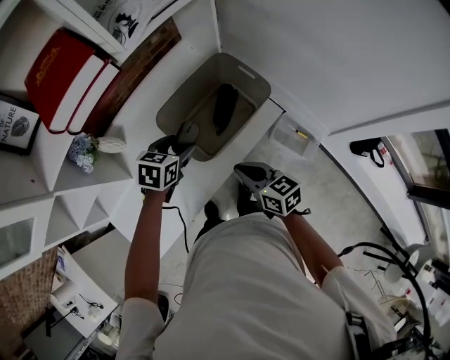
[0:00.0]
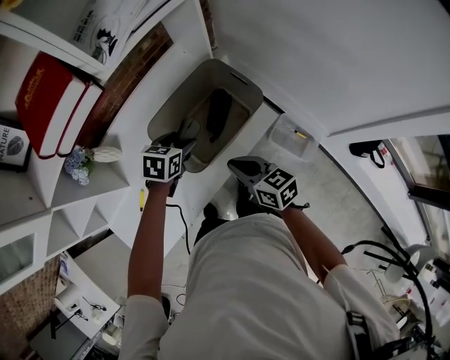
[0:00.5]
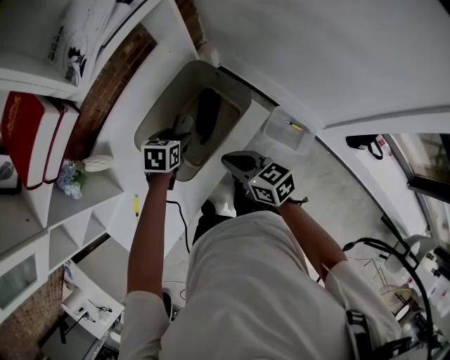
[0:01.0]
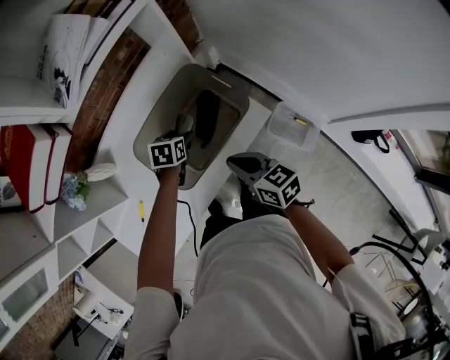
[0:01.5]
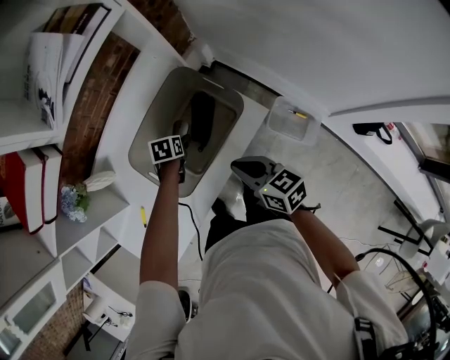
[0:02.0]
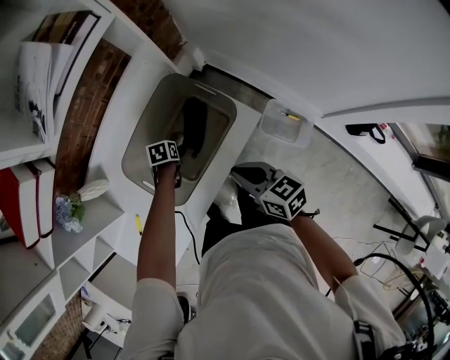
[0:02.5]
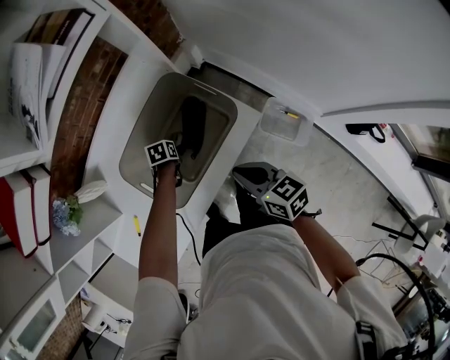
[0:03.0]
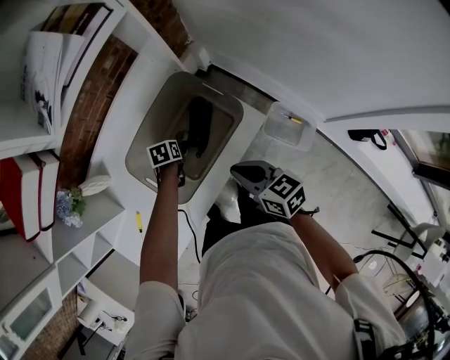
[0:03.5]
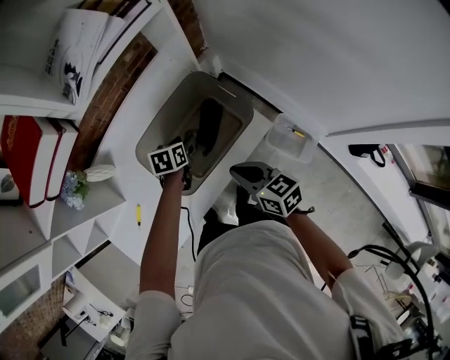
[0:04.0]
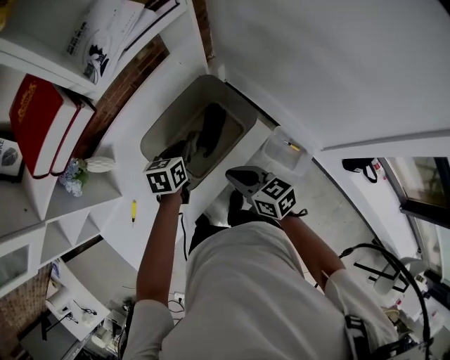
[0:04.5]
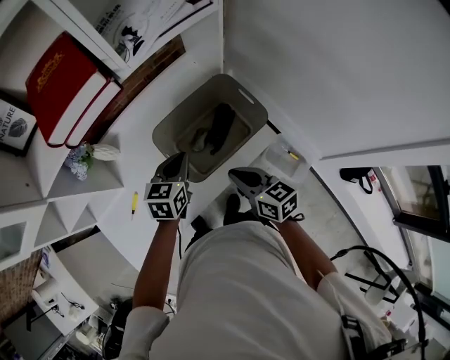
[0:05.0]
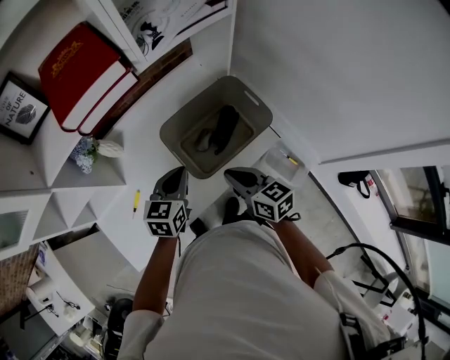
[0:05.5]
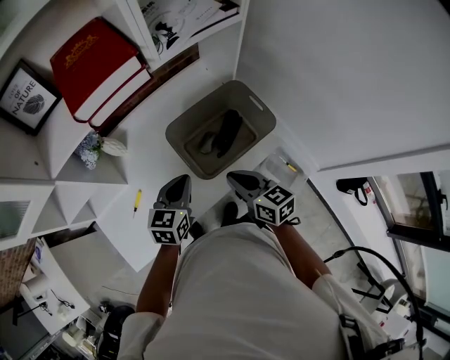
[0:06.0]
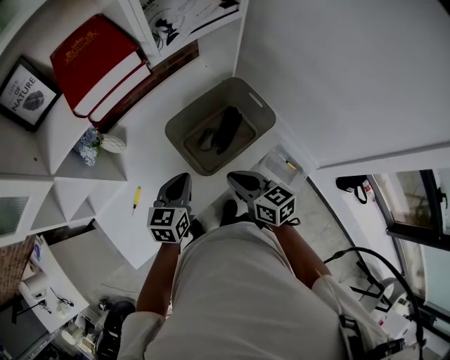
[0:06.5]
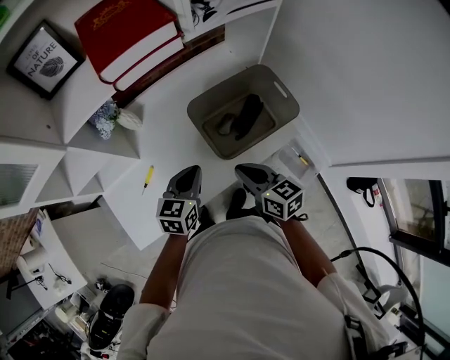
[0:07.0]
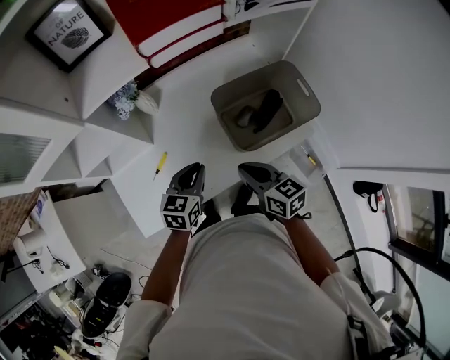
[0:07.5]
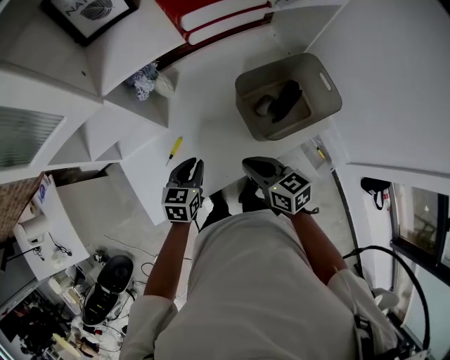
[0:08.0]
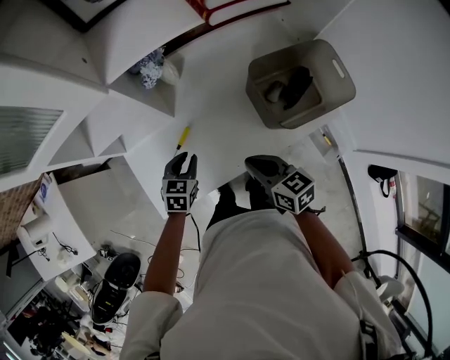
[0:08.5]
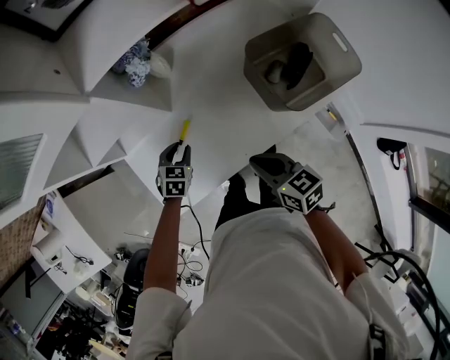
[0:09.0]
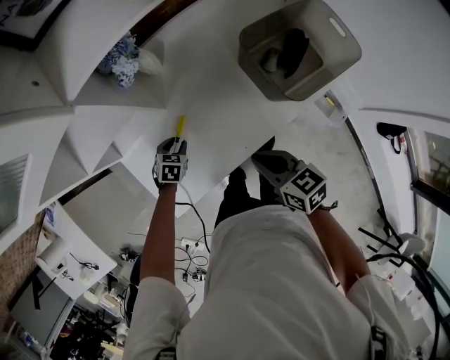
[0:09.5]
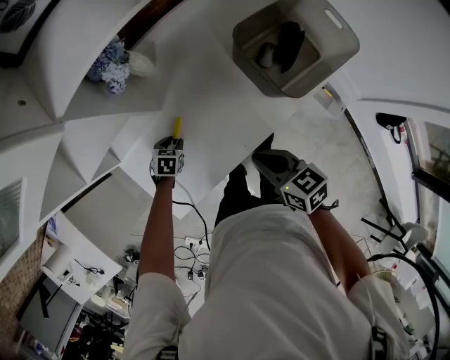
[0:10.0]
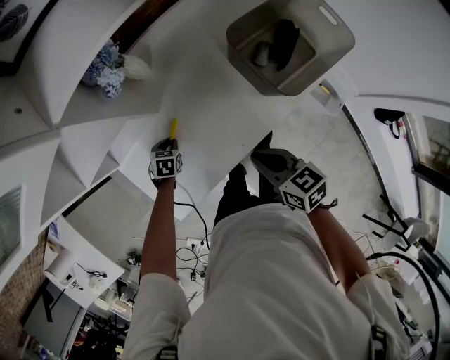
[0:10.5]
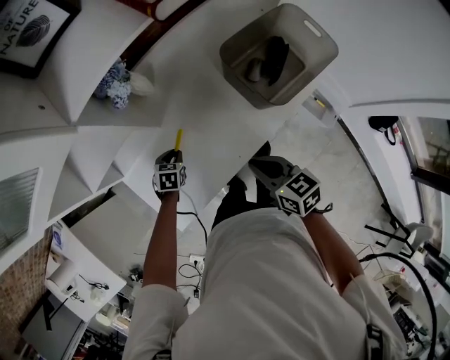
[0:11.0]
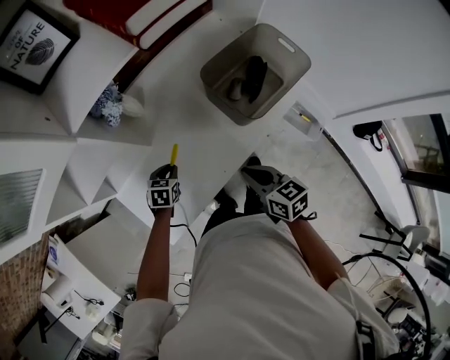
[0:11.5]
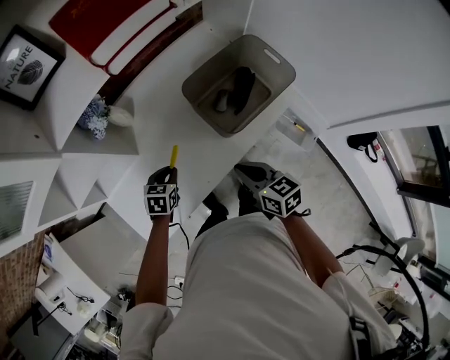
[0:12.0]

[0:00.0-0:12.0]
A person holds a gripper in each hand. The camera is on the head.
0:00.0 to 0:02.0: The left gripper heads downward and forward, covering approximately 25 cm, and changes its angle by some 30 degrees. The right gripper travels to the right and forward by roughly 10 cm.
0:02.0 to 0:04.0: The left gripper travels upward by some 5 cm.
0:04.0 to 0:06.0: The right gripper is displaced to the left and upward by approximately 10 cm. Meanwhile the left gripper shifts approximately 25 cm upward, backward and to the left, rotates roughly 30 degrees, and closes.
0:06.0 to 0:08.0: The right gripper moves to the left, some 15 cm; the left gripper goes approximately 20 cm to the left and downward.
0:08.0 to 0:10.0: The right gripper goes approximately 10 cm downward and to the left, while the left gripper travels downward and to the left by some 30 cm, and turns by approximately 30 degrees.
0:10.0 to 0:12.0: The right gripper is displaced to the right by approximately 10 cm, while the left gripper heads upward and to the right, covering about 20 cm.

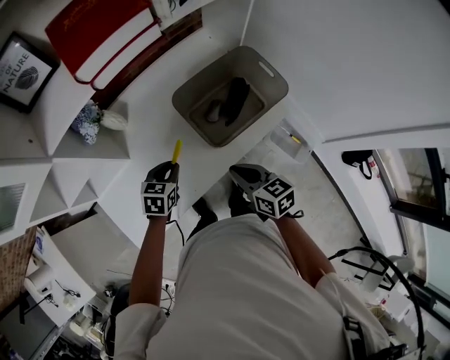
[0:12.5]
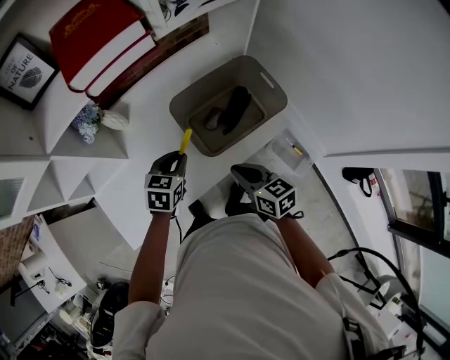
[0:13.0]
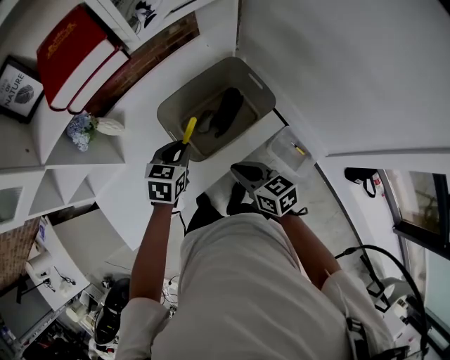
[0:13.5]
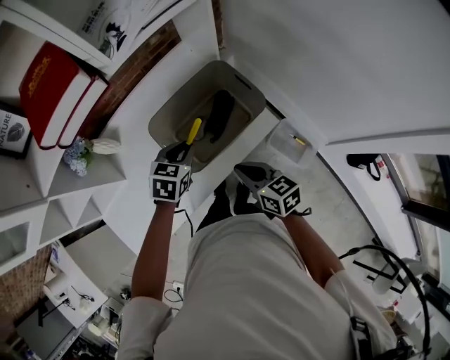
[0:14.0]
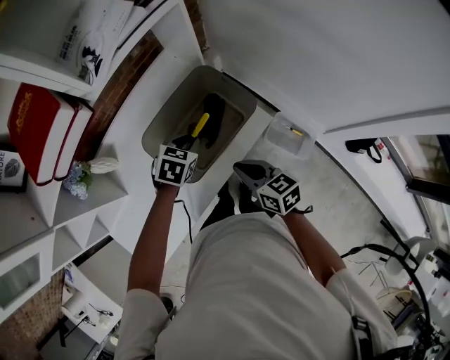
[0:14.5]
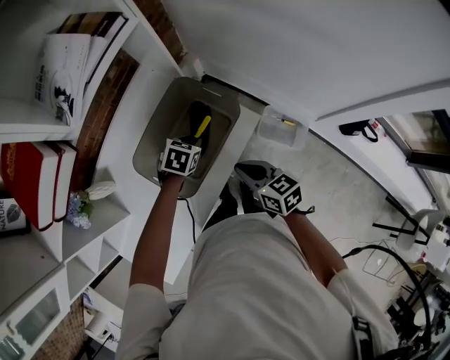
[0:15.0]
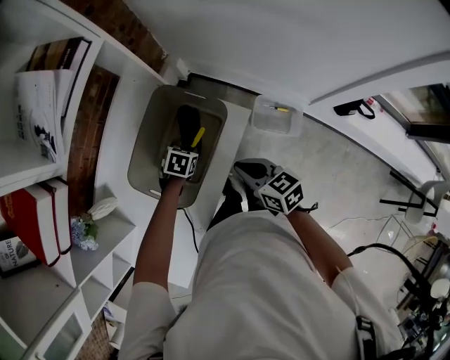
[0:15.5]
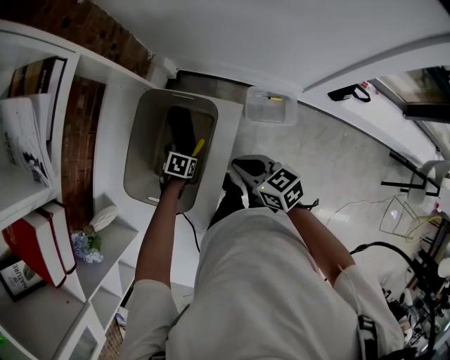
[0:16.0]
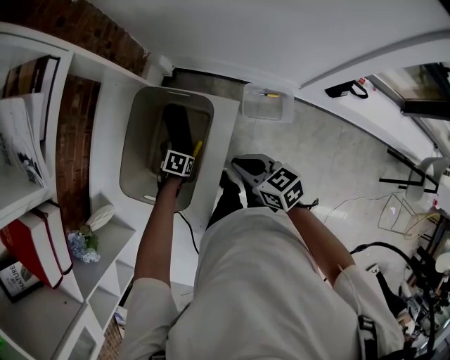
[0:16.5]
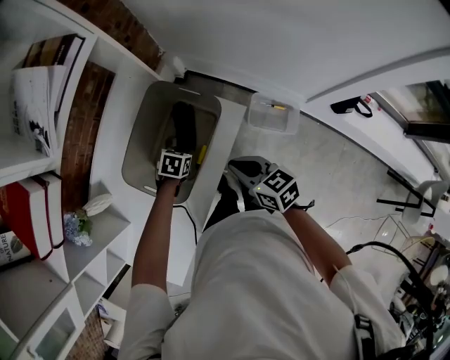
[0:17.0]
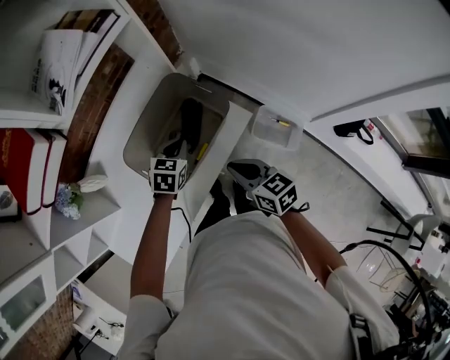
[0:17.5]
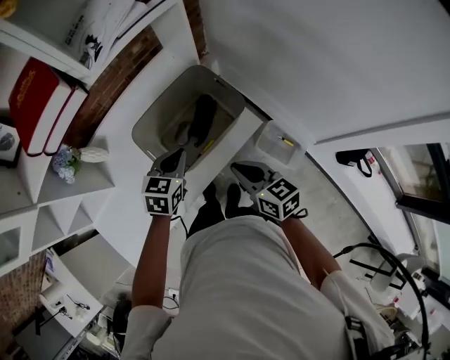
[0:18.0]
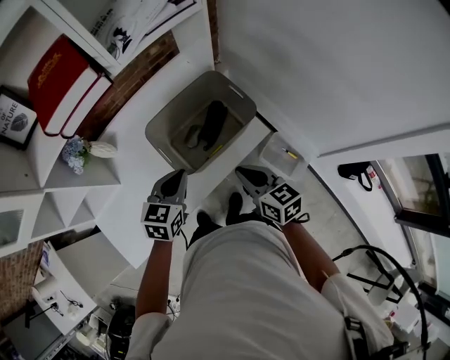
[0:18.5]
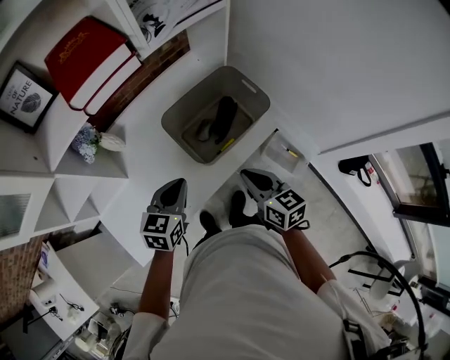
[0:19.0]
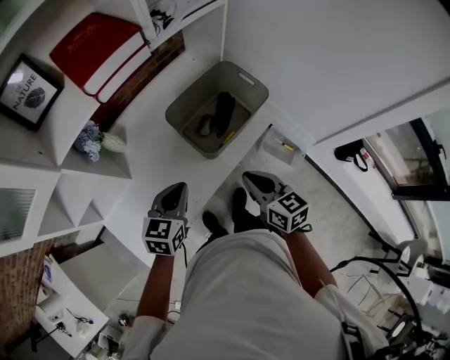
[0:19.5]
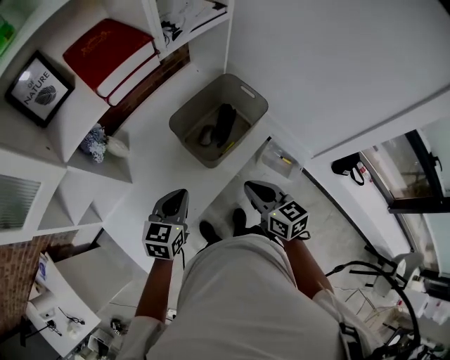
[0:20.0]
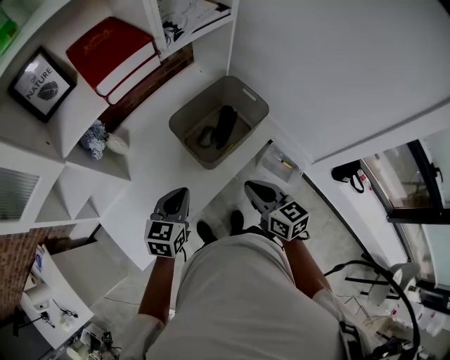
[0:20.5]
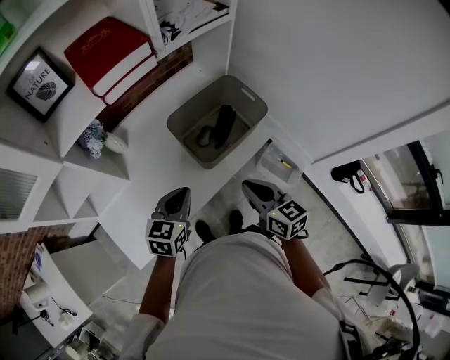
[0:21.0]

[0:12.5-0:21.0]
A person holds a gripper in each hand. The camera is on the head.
0:12.5 to 0:14.5: The left gripper heads to the right and forward, covering some 25 cm, and swivels roughly 20 degrees. Meanwhile the right gripper is displaced to the right and forward by roughly 15 cm.
0:14.5 to 0:16.5: The right gripper moves roughly 10 cm. The left gripper goes roughly 20 cm downward, and turns by some 40 degrees.
0:16.5 to 0:19.0: The left gripper moves upward, some 30 cm, and tips its fingers upward by approximately 40 degrees. Meanwhile the right gripper shifts by approximately 15 cm.
0:19.0 to 0:21.0: The right gripper is displaced backward by approximately 5 cm.

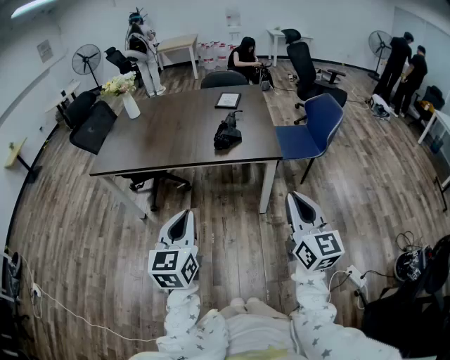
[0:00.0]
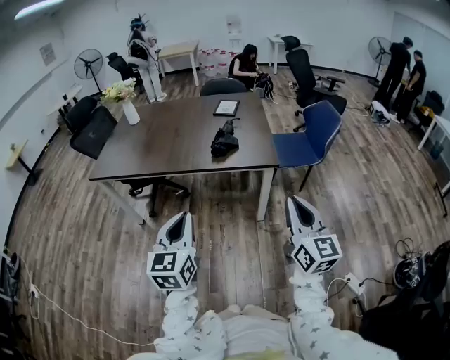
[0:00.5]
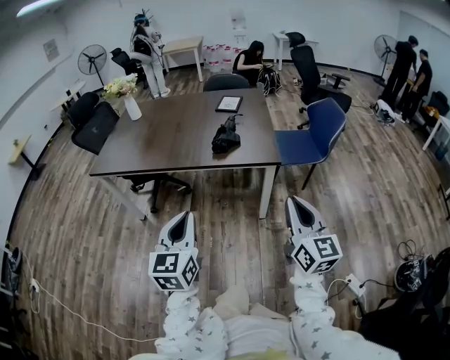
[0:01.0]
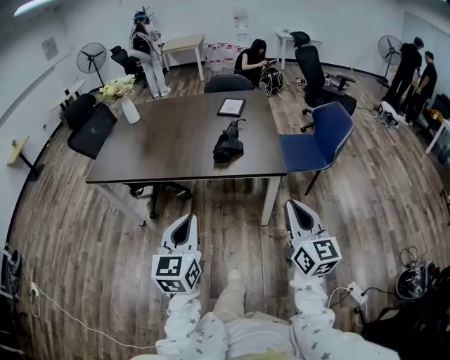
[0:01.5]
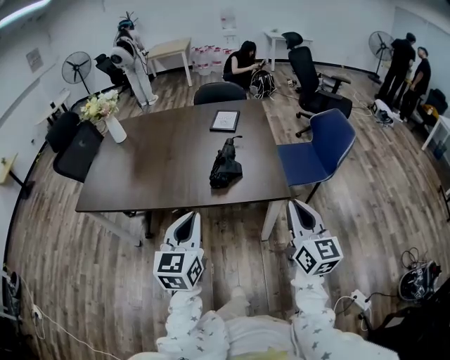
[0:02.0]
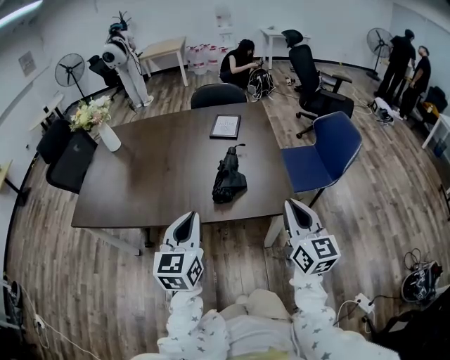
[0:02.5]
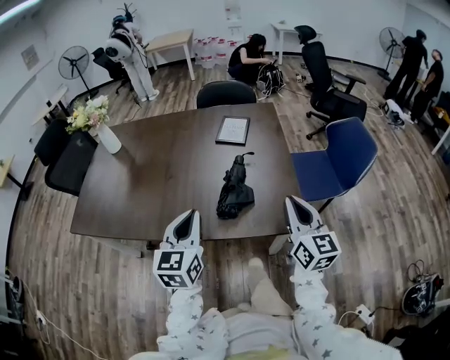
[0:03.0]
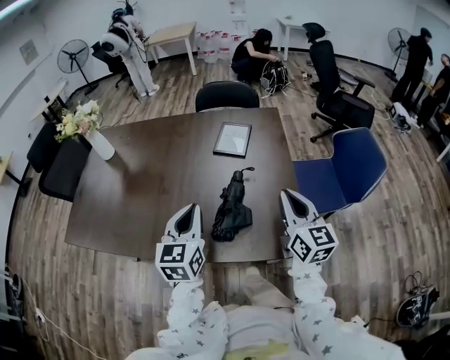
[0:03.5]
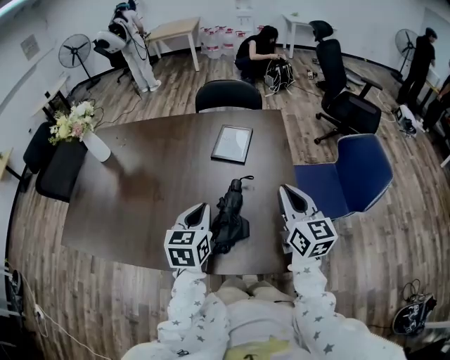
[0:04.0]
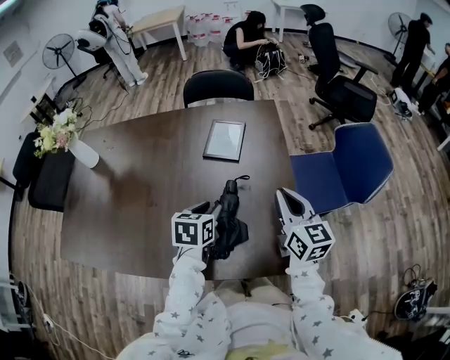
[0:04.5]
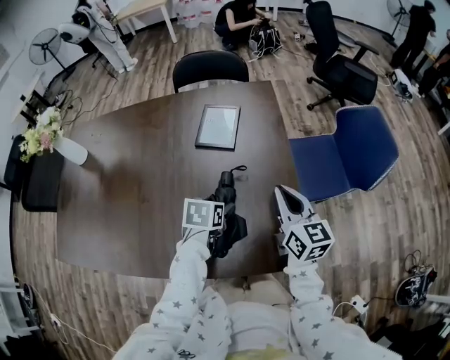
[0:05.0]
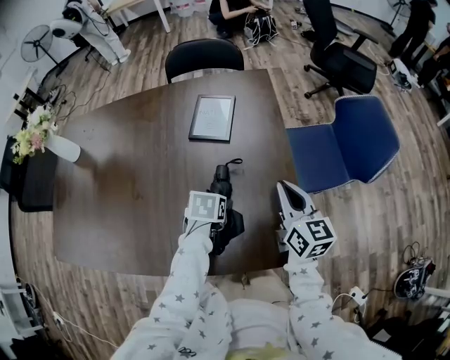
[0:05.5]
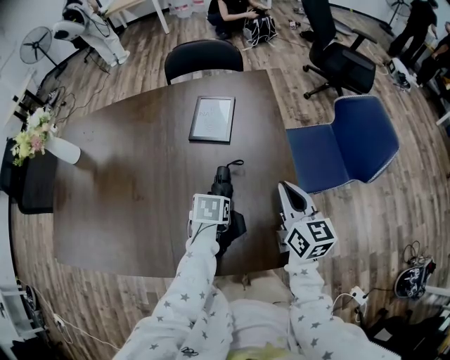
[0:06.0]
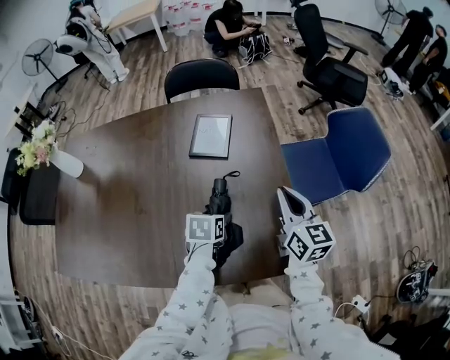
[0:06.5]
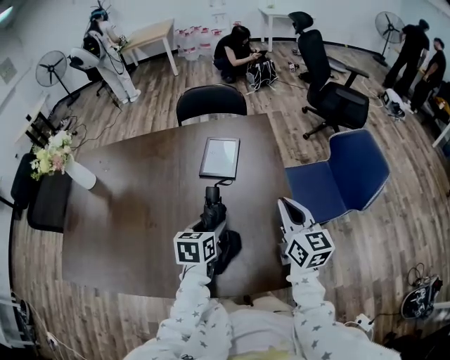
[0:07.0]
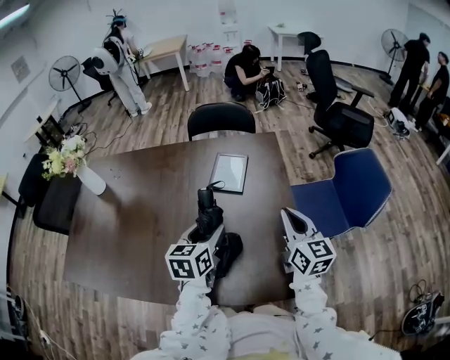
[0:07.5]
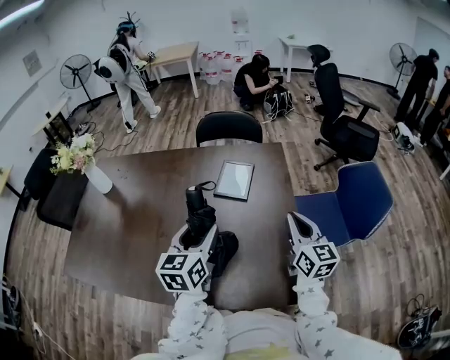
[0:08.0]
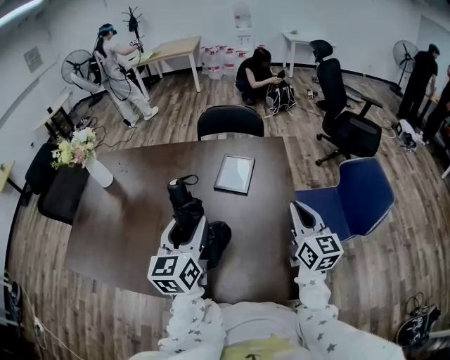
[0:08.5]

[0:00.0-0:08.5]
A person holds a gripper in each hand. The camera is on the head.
0:00.0 to 0:02.0: Both grippers travel together forward, about 25 cm.
0:02.0 to 0:04.0: Both grippers travel together forward, about 35 cm.
0:04.0 to 0:06.5: The right gripper travels downward by approximately 5 cm. The left gripper is displaced downward by roughly 15 cm, tilts its fingers about 30 degrees downward, and opens up.
0:06.5 to 0:08.5: The right gripper is displaced upward by roughly 5 cm. The left gripper goes roughly 25 cm upward, and tips its fingers upward by roughly 50 degrees.
